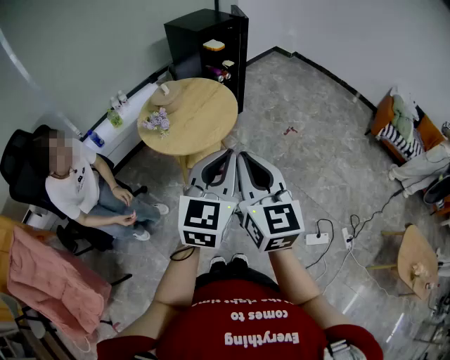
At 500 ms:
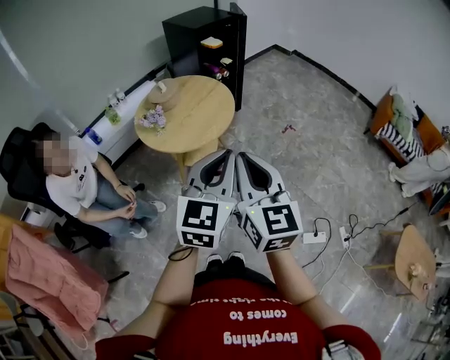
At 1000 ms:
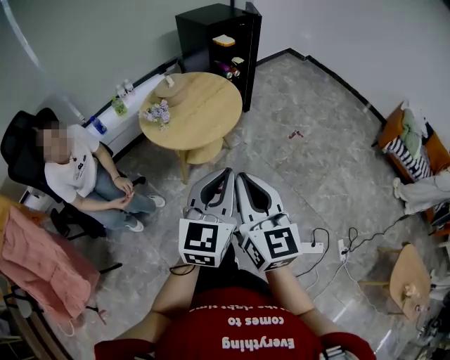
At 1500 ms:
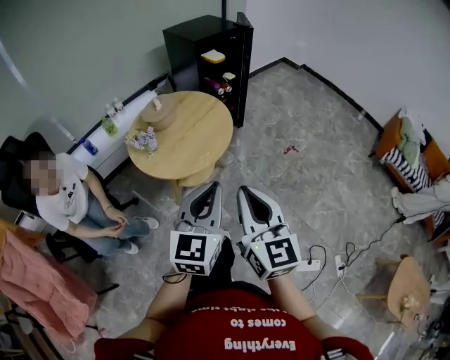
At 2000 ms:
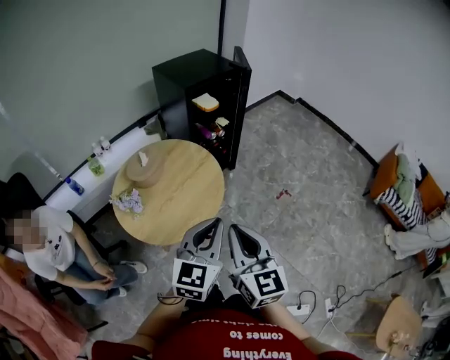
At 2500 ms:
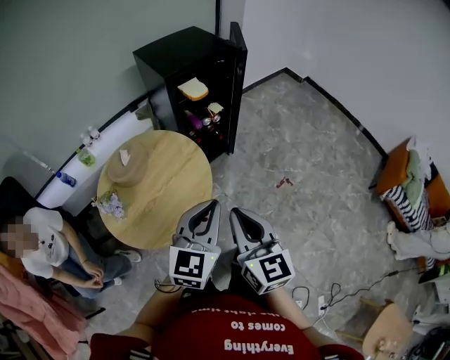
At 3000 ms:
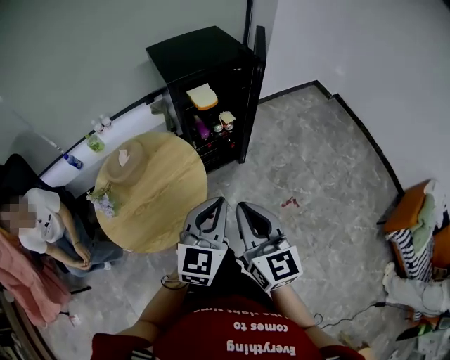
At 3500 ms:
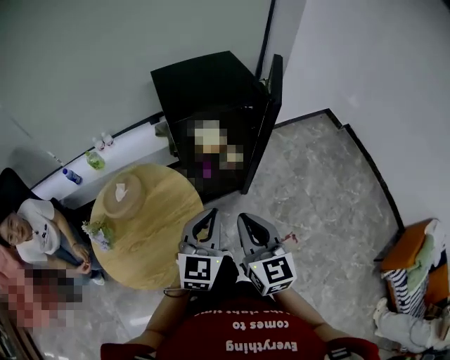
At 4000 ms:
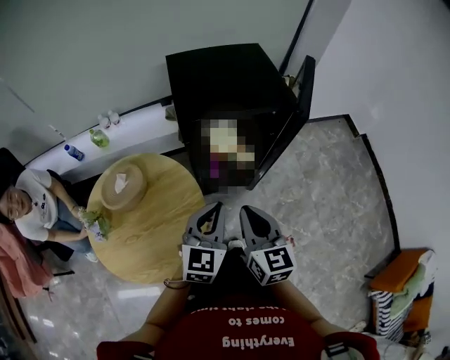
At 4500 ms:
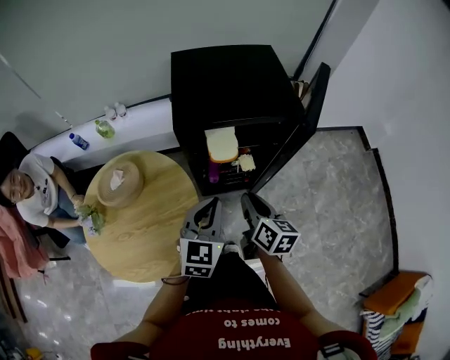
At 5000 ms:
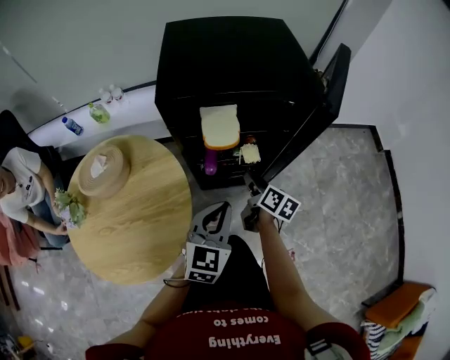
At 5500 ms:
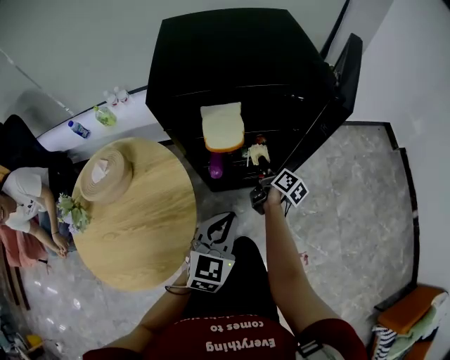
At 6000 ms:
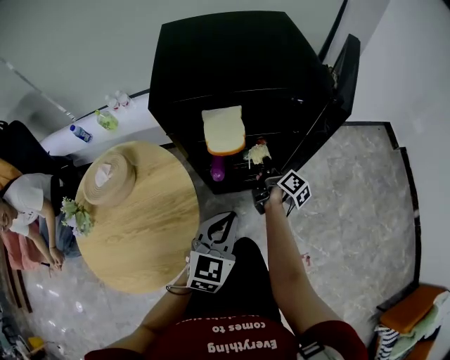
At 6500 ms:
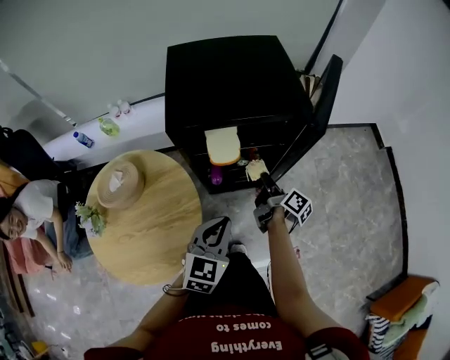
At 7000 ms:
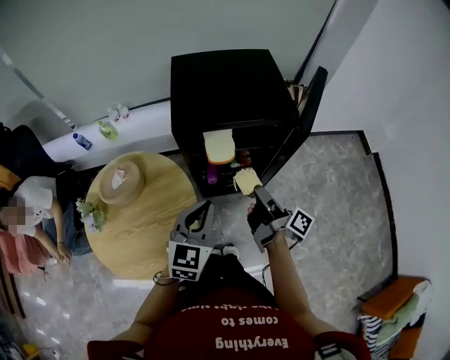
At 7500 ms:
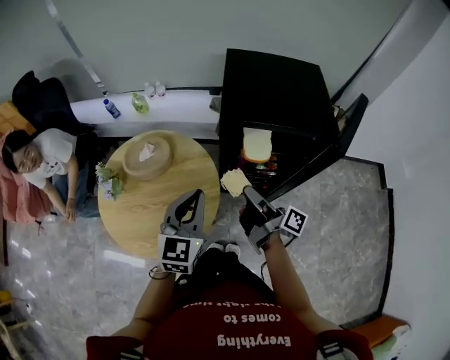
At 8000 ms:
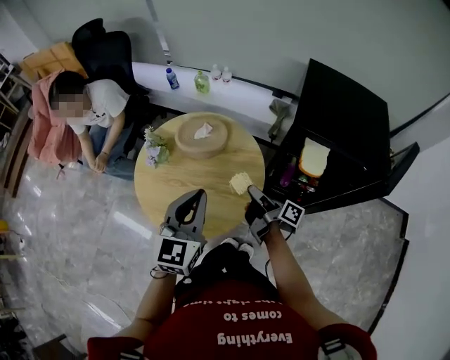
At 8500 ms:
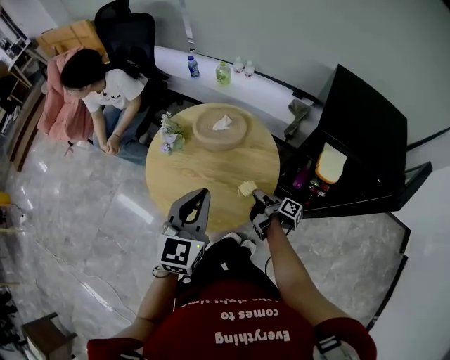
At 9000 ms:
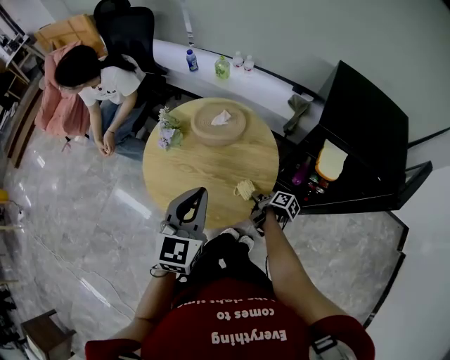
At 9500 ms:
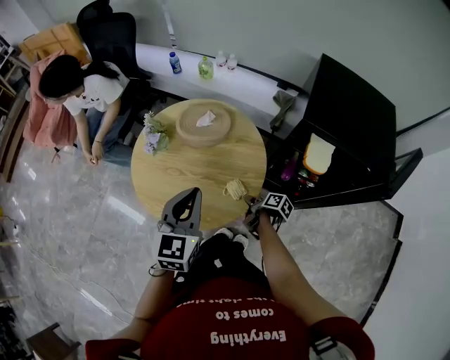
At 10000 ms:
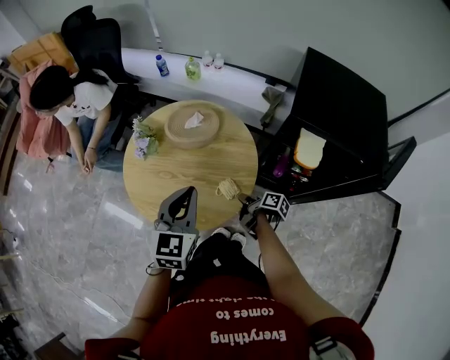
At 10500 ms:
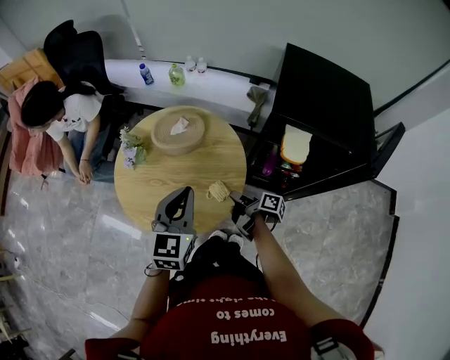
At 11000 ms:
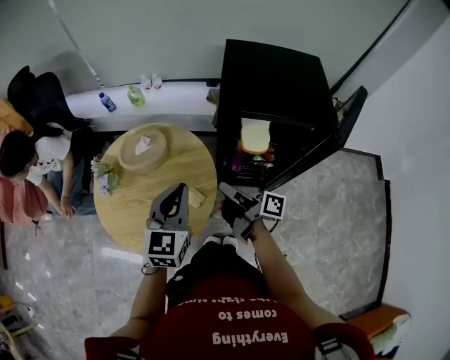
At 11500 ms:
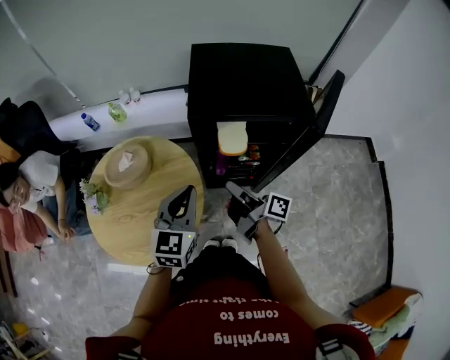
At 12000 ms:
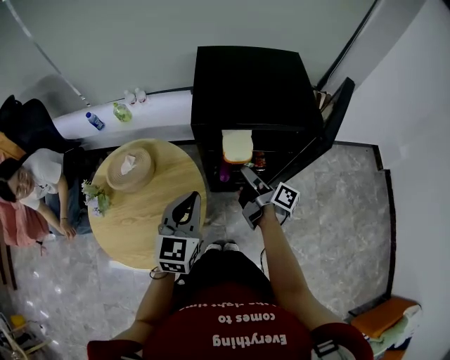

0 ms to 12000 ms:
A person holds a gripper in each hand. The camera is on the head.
0 ms to 2000 ms: The left gripper shifts by roughly 30 cm.
2000 ms to 4000 ms: The left gripper changes place by some 50 cm, and turns by about 30 degrees.
4000 ms to 6000 ms: The left gripper heads downward, covering some 15 cm.
6000 ms to 8000 ms: The left gripper ends up approximately 35 cm from where it was, and turns by approximately 40 degrees.
8000 ms to 10000 ms: The left gripper moves downward, approximately 5 cm.
10000 ms to 12000 ms: The left gripper changes place by some 20 cm, and rotates roughly 20 degrees.

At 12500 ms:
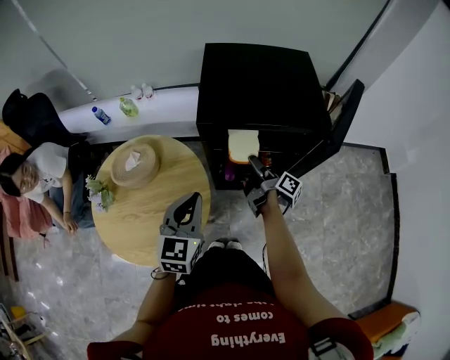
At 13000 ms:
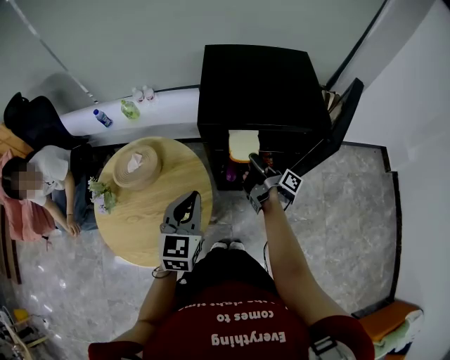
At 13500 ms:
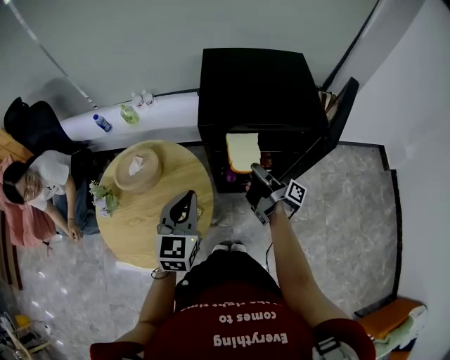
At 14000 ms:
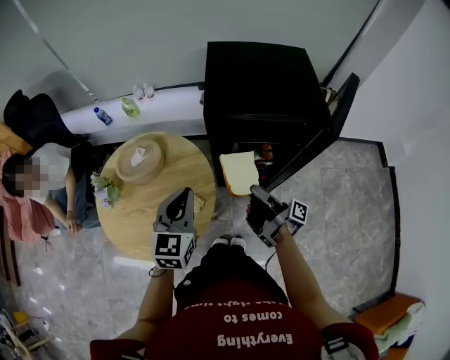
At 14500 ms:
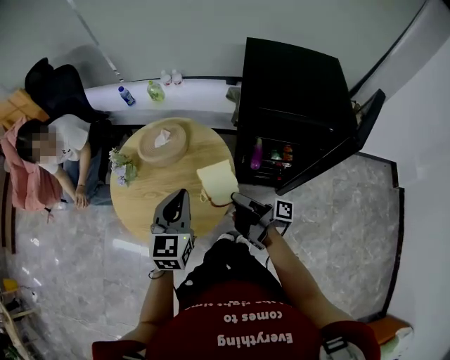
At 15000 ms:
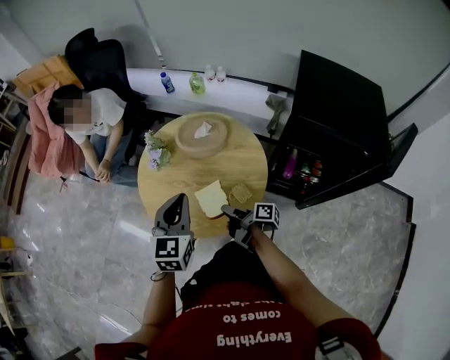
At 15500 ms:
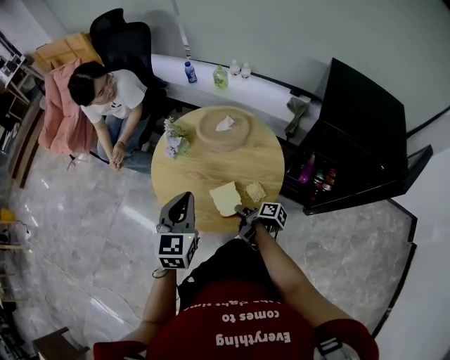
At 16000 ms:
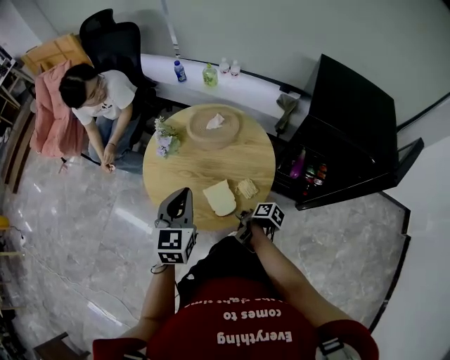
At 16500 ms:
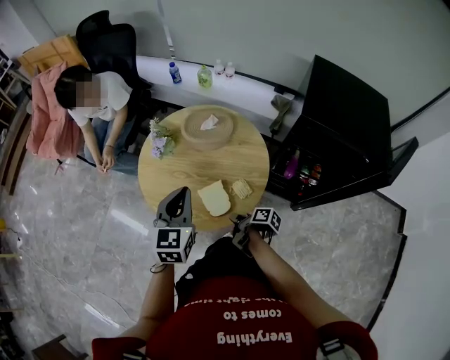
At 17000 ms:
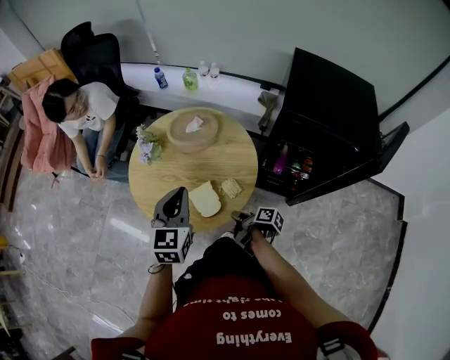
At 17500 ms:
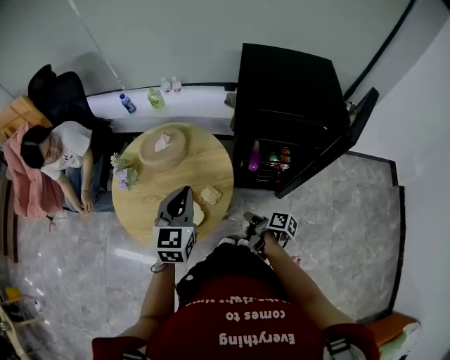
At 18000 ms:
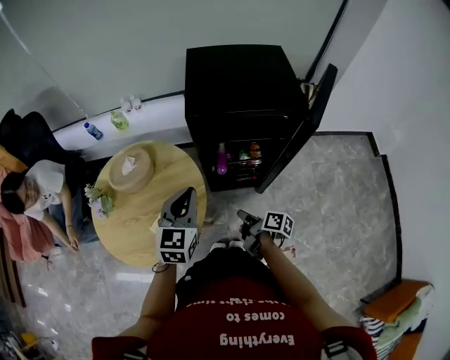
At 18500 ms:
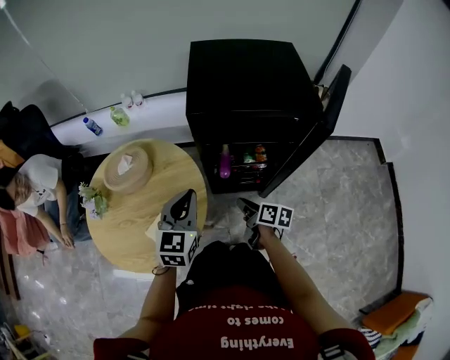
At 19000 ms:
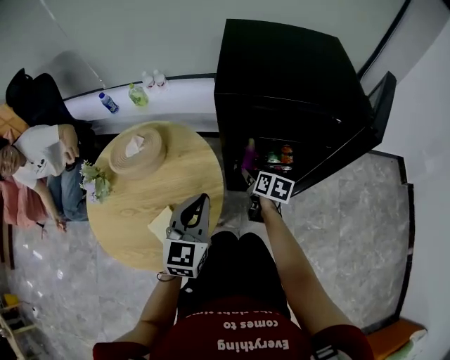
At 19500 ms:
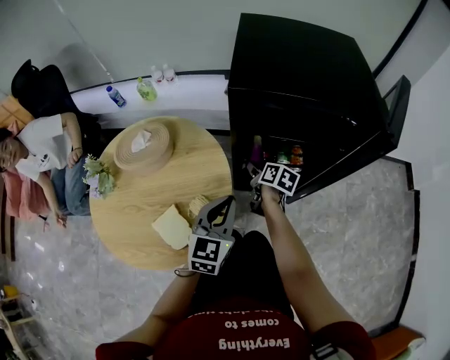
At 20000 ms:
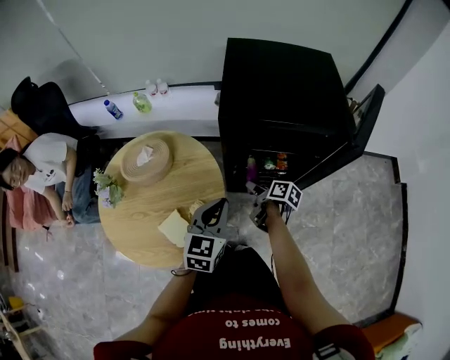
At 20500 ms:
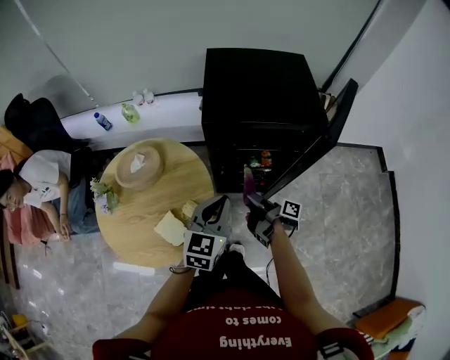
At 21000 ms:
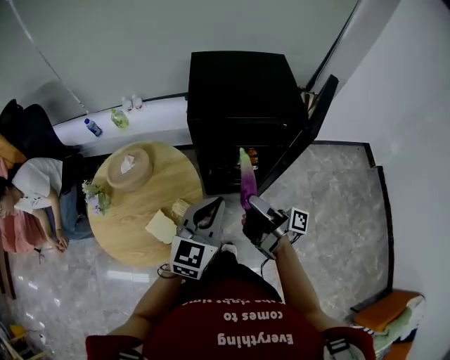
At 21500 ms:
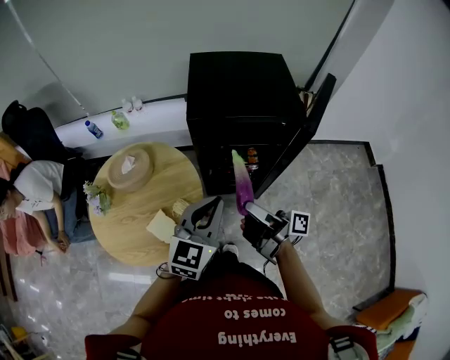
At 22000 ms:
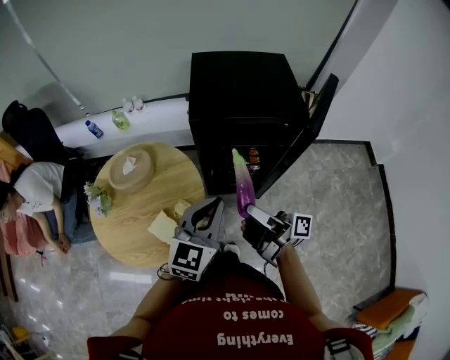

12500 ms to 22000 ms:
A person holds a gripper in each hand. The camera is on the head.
12500 ms to 14500 ms: The left gripper ends up about 15 cm from where it was.
14500 ms to 16500 ms: The left gripper shifts by roughly 15 cm.
16500 ms to 18000 ms: The left gripper shifts by about 25 cm, and swivels approximately 30 degrees.
18000 ms to 20000 ms: The left gripper travels downward by about 5 cm.
20000 ms to 22000 ms: The left gripper goes some 15 cm upward.

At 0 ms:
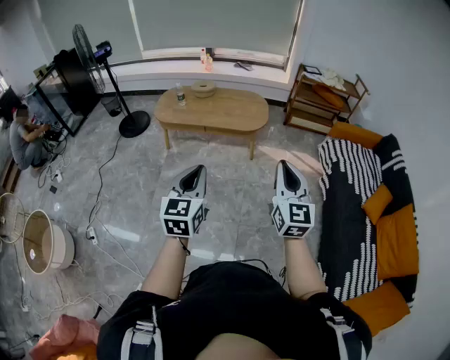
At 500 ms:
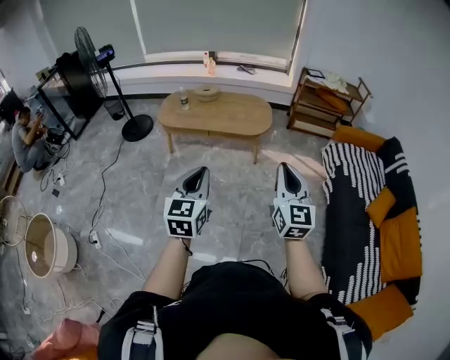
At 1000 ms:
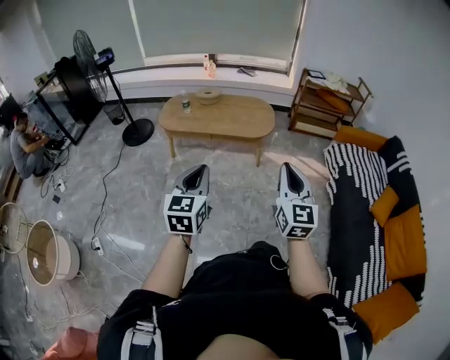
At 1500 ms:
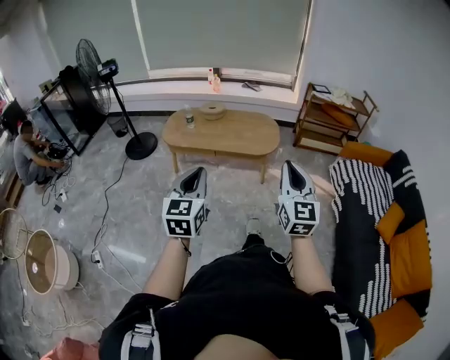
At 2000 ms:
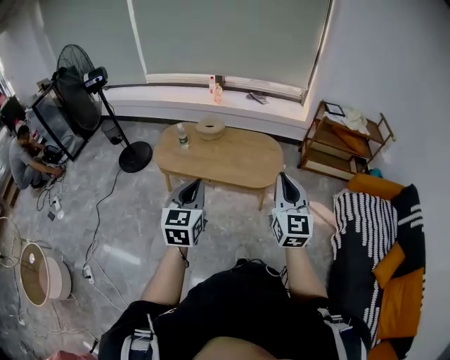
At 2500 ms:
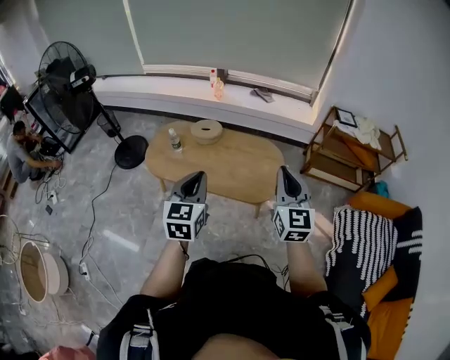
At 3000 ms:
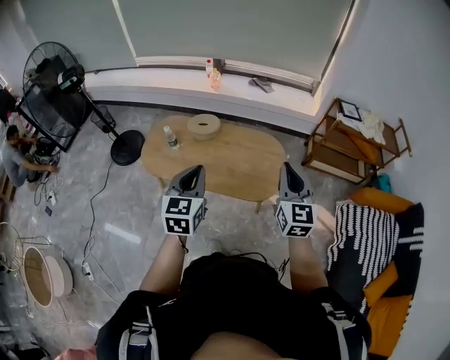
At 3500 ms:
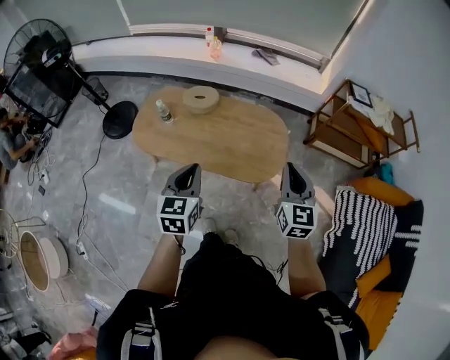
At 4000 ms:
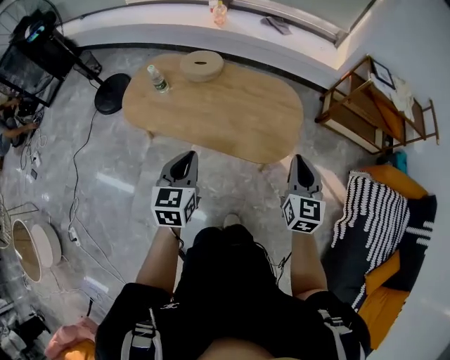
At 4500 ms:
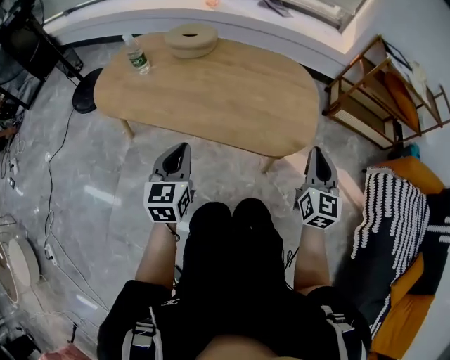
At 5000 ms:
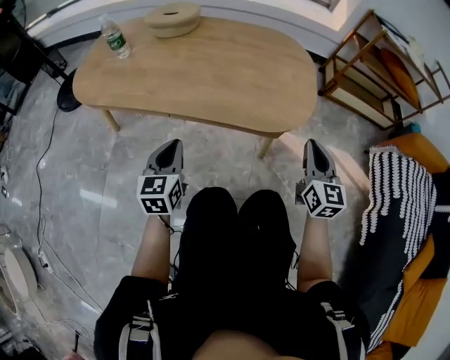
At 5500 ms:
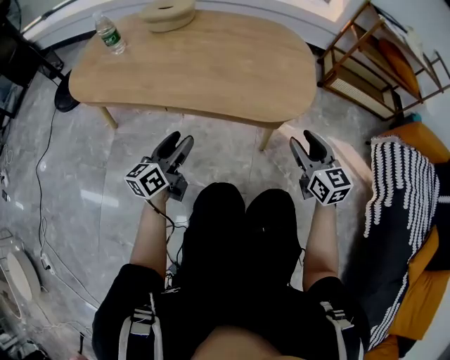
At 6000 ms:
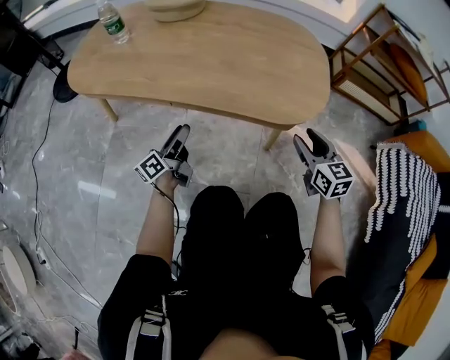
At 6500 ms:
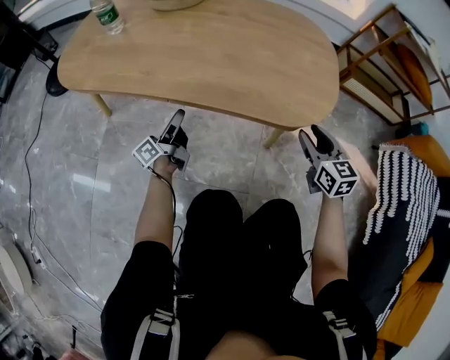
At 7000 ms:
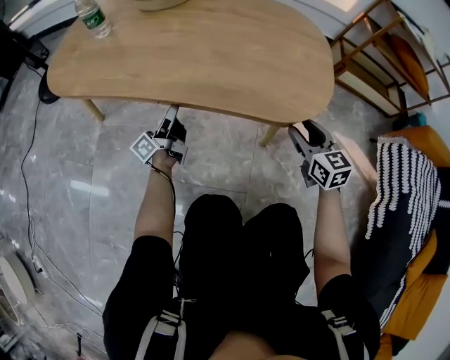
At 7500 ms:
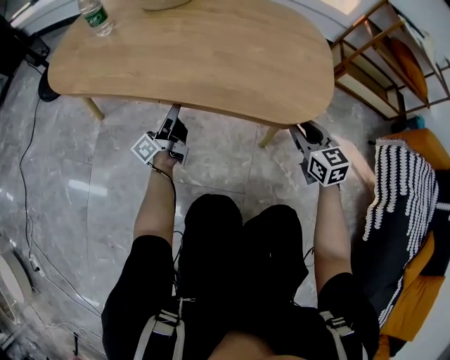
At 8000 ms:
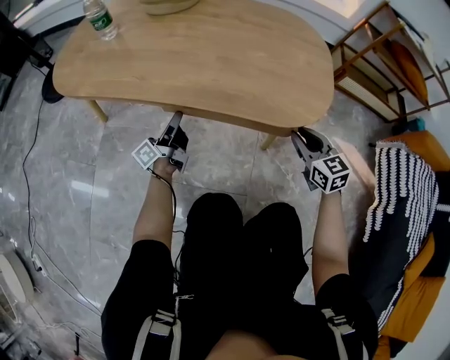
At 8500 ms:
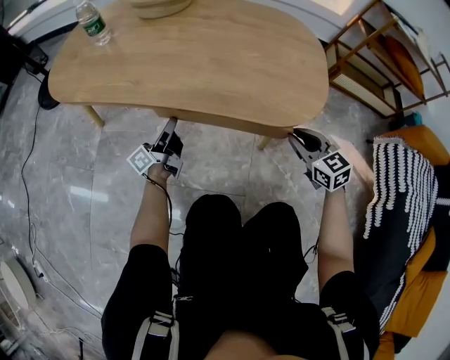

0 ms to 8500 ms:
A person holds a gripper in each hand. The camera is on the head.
0 ms to 2000 ms: The two grippers travel together, forward, some 40 cm.
2000 ms to 4000 ms: The grippers both shift forward and downward by some 40 cm.
4000 ms to 6500 ms: The two grippers go roughly 50 cm downward. The left gripper rotates around the line of its fingers by about 60 degrees, counterclockwise from behind, and opens, while the right gripper opens up.
6500 ms to 8500 ms: The right gripper closes; the left gripper closes.
